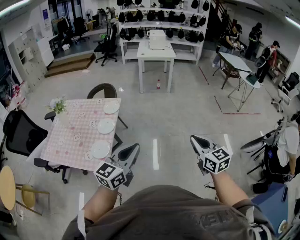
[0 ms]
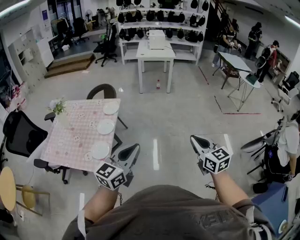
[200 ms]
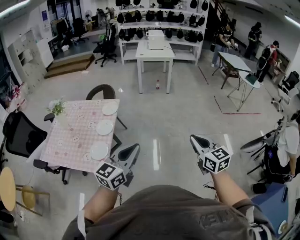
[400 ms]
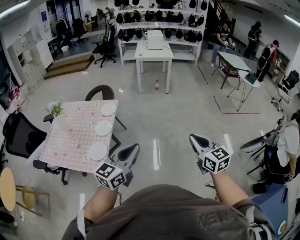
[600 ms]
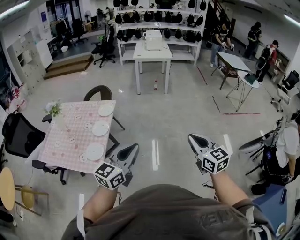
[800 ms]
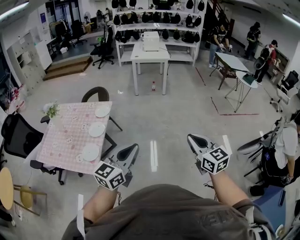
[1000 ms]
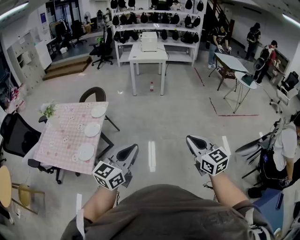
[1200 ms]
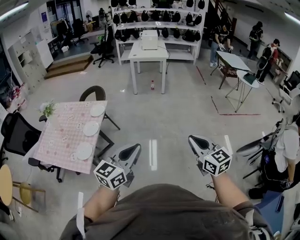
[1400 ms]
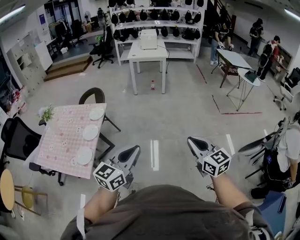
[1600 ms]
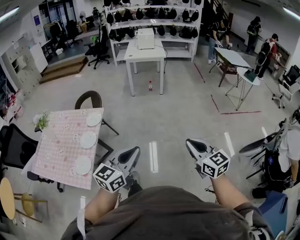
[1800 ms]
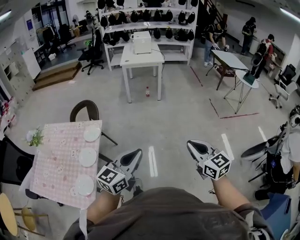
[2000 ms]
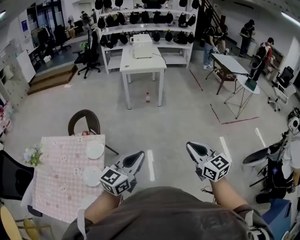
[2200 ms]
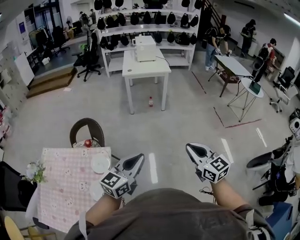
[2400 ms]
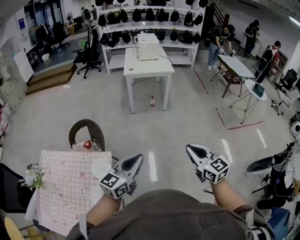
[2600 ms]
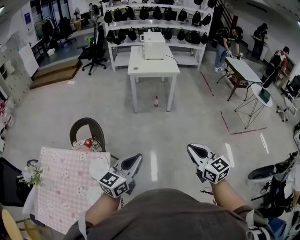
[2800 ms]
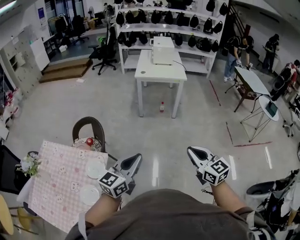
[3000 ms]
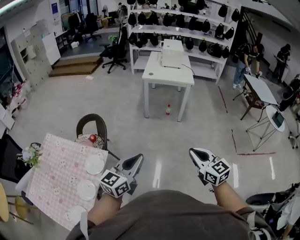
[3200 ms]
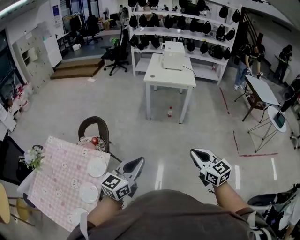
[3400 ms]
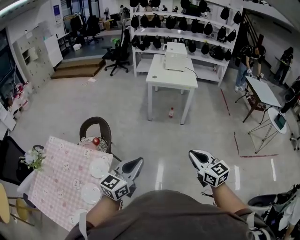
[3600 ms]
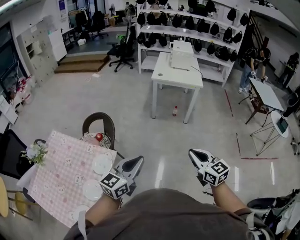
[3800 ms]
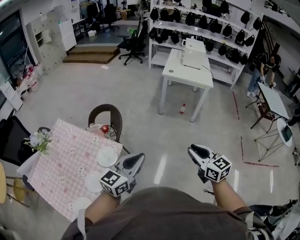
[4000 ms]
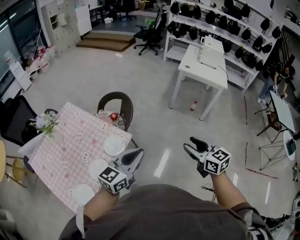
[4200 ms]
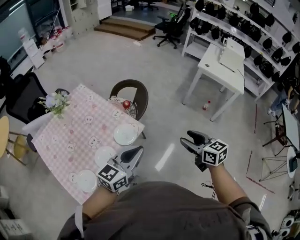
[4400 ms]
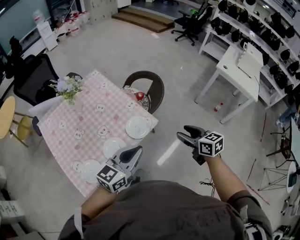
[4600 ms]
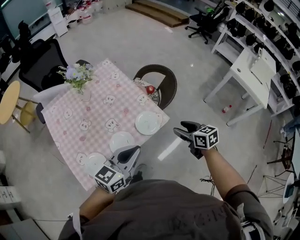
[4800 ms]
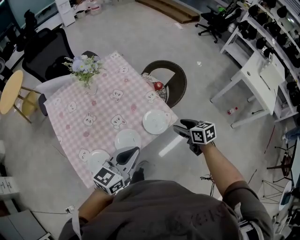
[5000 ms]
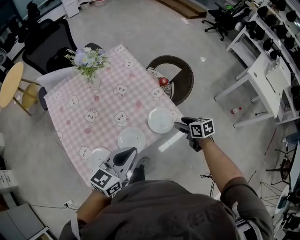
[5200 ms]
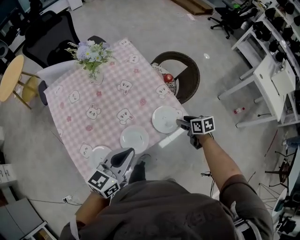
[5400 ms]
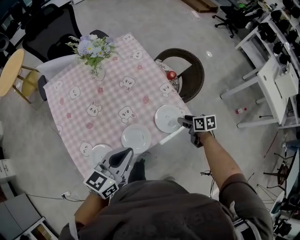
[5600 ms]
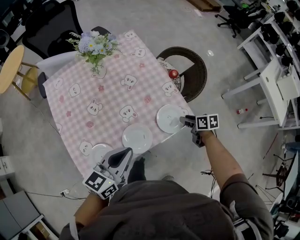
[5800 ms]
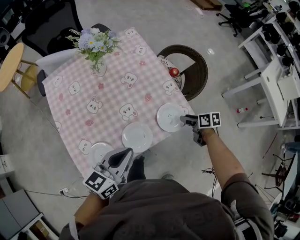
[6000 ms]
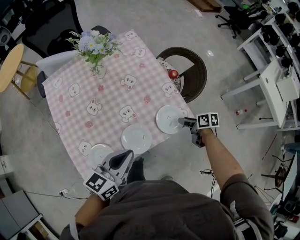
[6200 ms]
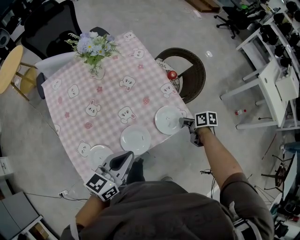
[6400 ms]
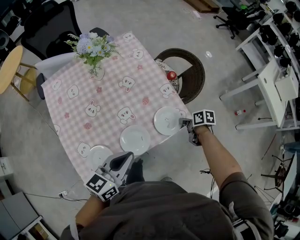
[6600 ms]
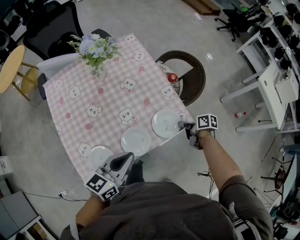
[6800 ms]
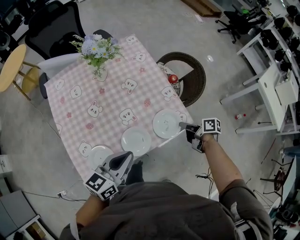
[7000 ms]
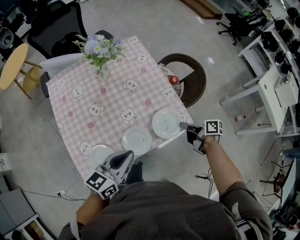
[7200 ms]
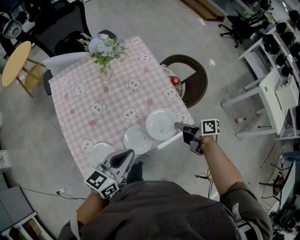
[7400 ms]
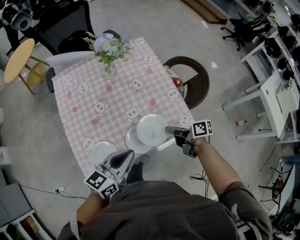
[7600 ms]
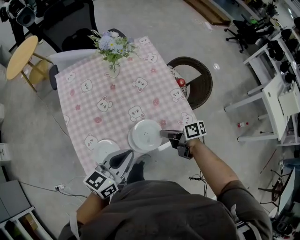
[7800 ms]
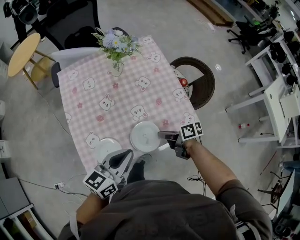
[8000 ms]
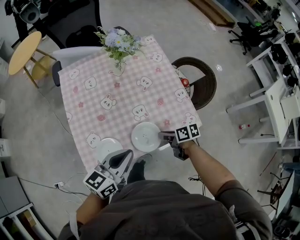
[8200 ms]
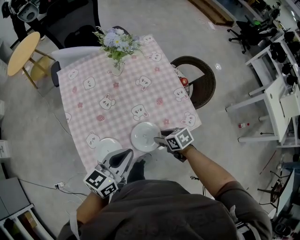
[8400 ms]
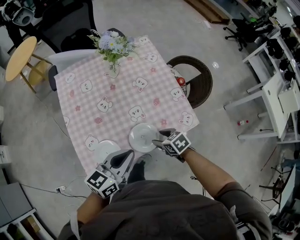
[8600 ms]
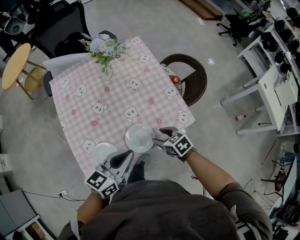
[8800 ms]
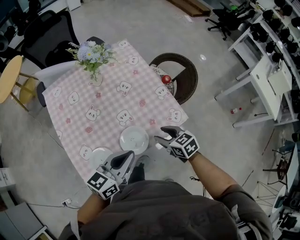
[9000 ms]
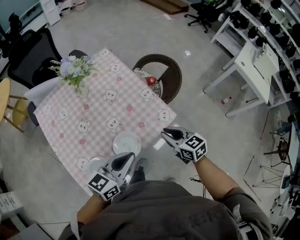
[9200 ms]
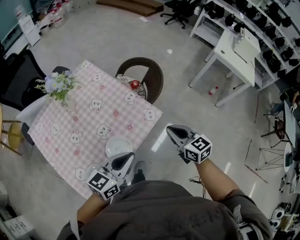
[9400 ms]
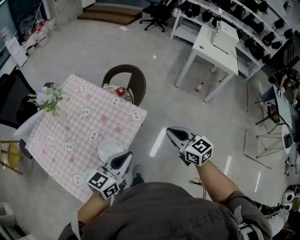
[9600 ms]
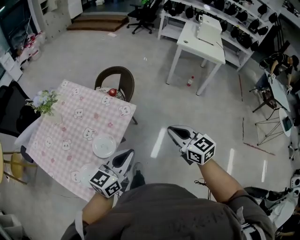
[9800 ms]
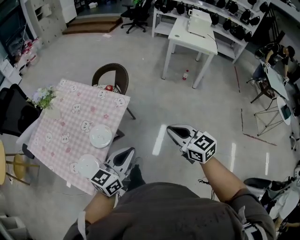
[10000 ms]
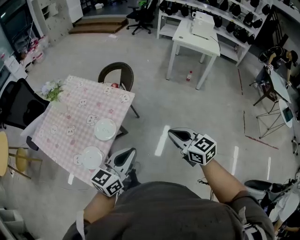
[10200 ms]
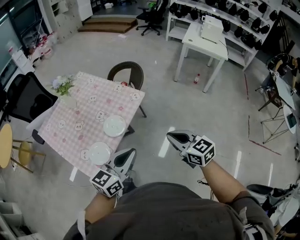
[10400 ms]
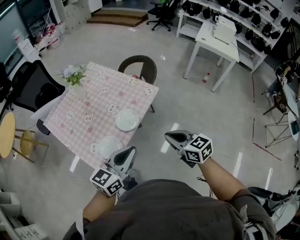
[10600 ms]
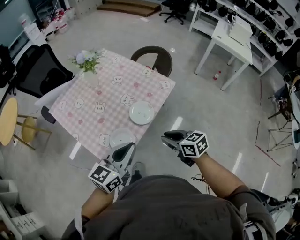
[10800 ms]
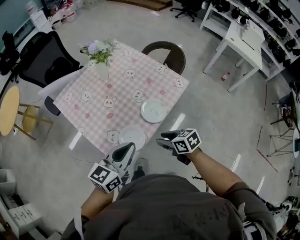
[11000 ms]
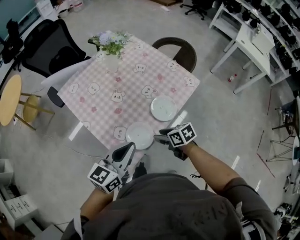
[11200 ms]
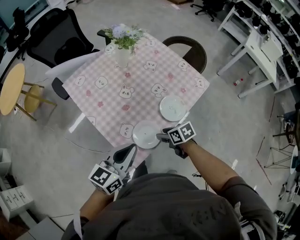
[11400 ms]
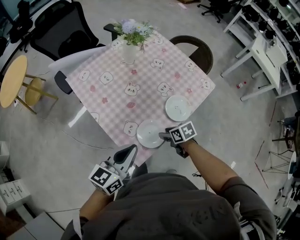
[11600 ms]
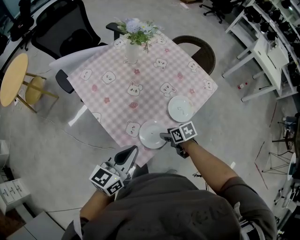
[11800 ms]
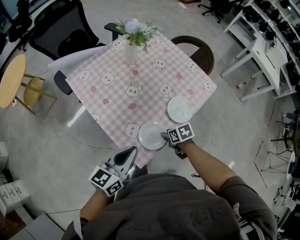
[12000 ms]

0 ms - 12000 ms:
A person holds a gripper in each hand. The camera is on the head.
0 ms - 1600 ms: Both grippers travel together to the right and forward, approximately 15 cm.
1600 ms - 3000 ms: The pair of grippers is taken forward, some 50 cm.
3000 ms - 4400 ms: The right gripper changes place by approximately 25 cm, changes its angle by roughly 40 degrees, and opens its fingers. The left gripper shifts by approximately 20 cm, and rotates approximately 30 degrees.
4400 ms - 6000 ms: The right gripper shifts roughly 30 cm downward, and rotates about 40 degrees. The left gripper ends up about 30 cm from where it was, and rotates some 30 degrees.
6000 ms - 7600 ms: The right gripper goes about 15 cm to the left and upward, swivels about 30 degrees, and closes.
7600 ms - 9000 ms: The right gripper moves backward, about 5 cm, reaches some 5 cm downward, then returns, rolls counterclockwise, seen from behind, by roughly 50 degrees, and opens its fingers.
9000 ms - 10400 ms: The left gripper ends up roughly 25 cm from where it was, and swivels some 30 degrees, while the right gripper changes place by roughly 40 cm, swivels about 40 degrees, and closes up.
10400 ms - 12000 ms: The left gripper shifts by about 35 cm, and turns by some 20 degrees; the right gripper shifts by some 50 cm, tips its fingers downward by about 40 degrees, and opens.

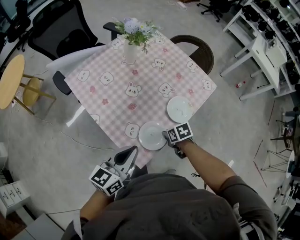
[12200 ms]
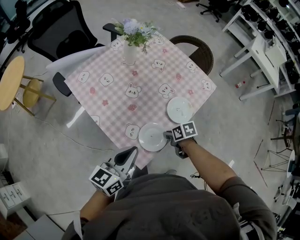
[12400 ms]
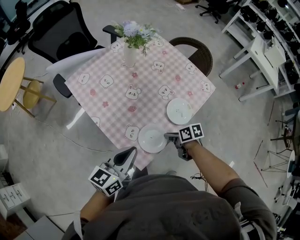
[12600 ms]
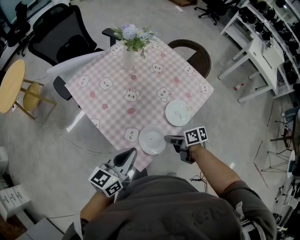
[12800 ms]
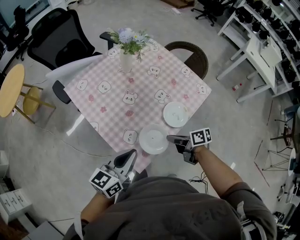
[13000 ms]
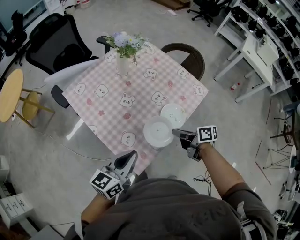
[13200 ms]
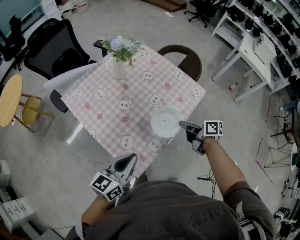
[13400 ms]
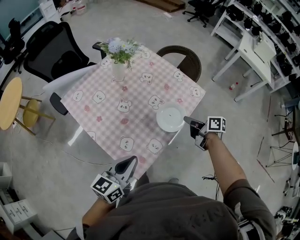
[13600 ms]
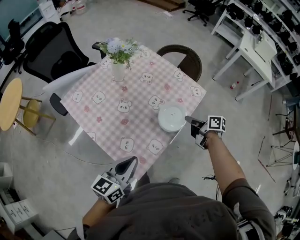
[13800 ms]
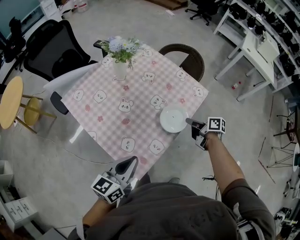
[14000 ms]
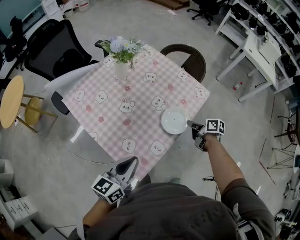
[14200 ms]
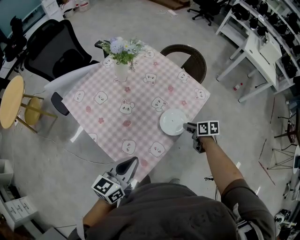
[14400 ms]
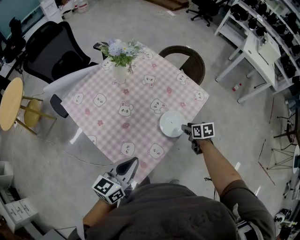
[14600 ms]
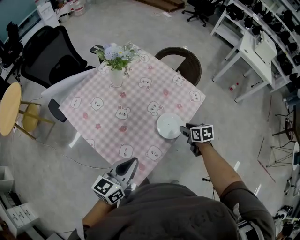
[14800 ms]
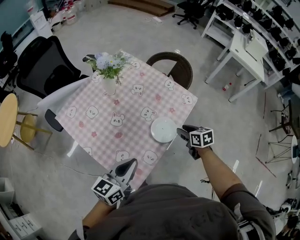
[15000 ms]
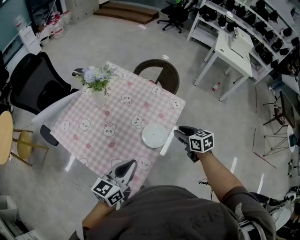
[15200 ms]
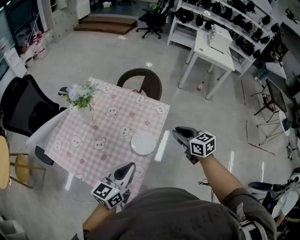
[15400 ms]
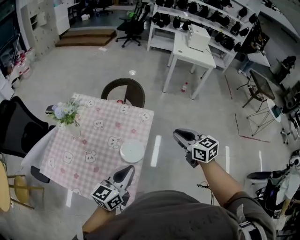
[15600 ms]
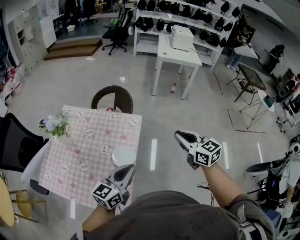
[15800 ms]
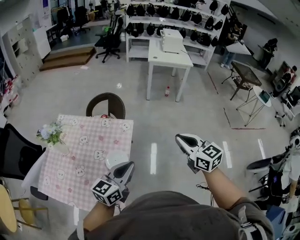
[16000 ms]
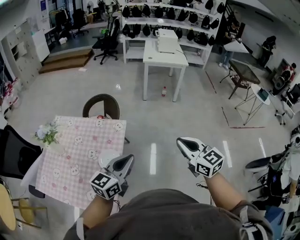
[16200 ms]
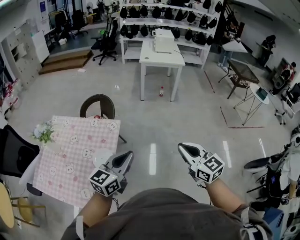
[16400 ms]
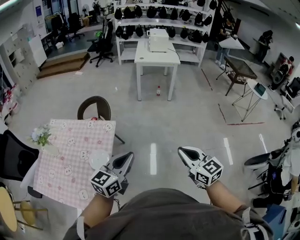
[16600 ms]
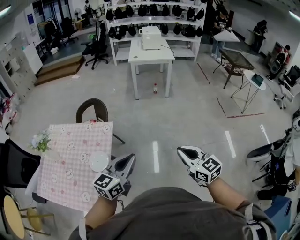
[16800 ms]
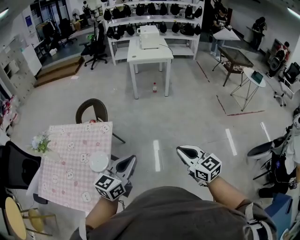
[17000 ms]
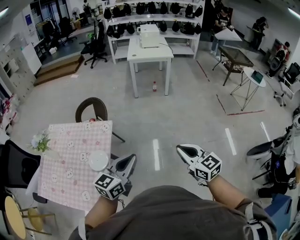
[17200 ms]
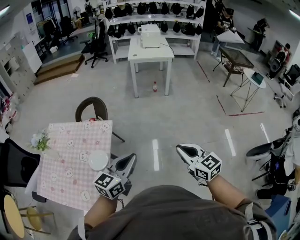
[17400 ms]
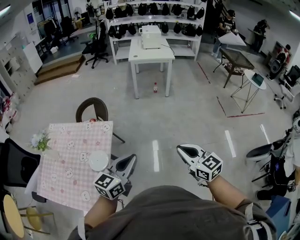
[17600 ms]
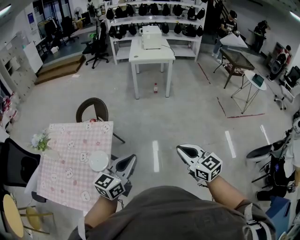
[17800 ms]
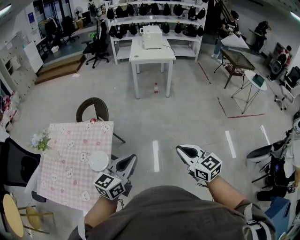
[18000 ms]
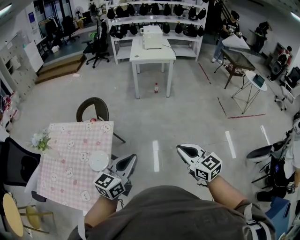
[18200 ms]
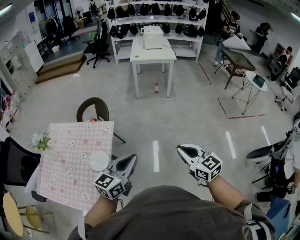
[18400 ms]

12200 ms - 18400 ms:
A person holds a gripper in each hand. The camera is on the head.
12200 ms - 13800 ms: The right gripper heads to the right, upward and forward, covering some 20 cm, and tilts its fingers approximately 40 degrees upward.
13800 ms - 15400 ms: The right gripper shifts approximately 15 cm upward and to the right, changes its angle by approximately 50 degrees, and opens its fingers. Meanwhile the left gripper heads to the right, forward and upward, covering some 15 cm.
15400 ms - 16800 ms: The right gripper goes approximately 40 cm to the right and backward, turns by about 30 degrees, and closes up. The left gripper travels to the right by some 35 cm, and swivels roughly 20 degrees.
16800 ms - 18400 ms: The grippers move only a little.

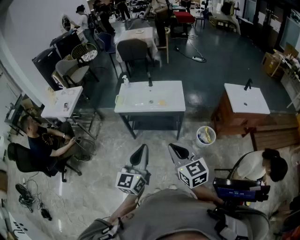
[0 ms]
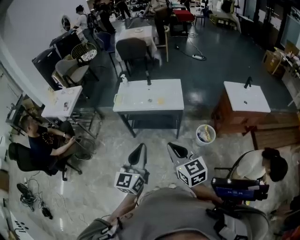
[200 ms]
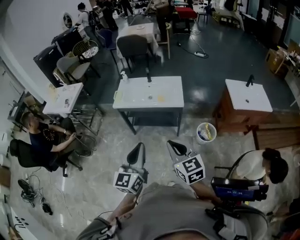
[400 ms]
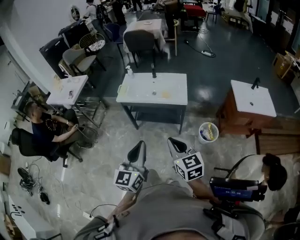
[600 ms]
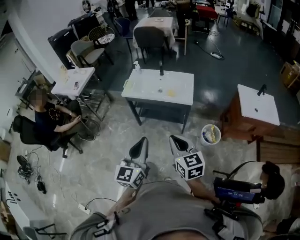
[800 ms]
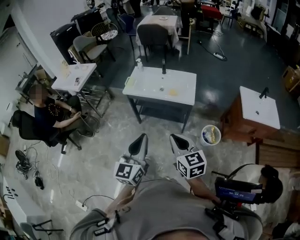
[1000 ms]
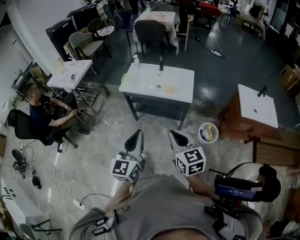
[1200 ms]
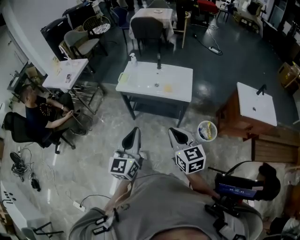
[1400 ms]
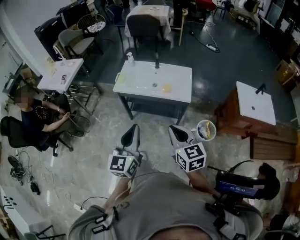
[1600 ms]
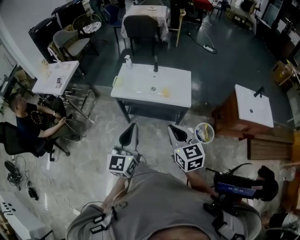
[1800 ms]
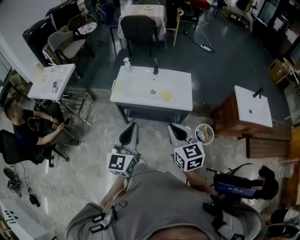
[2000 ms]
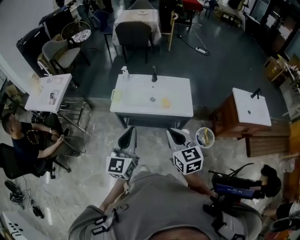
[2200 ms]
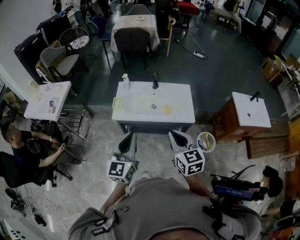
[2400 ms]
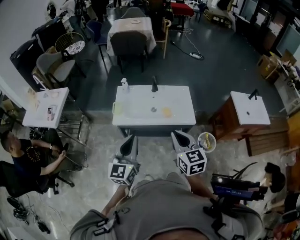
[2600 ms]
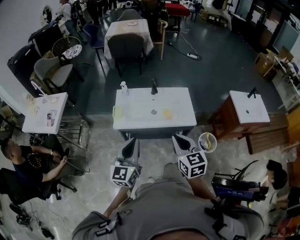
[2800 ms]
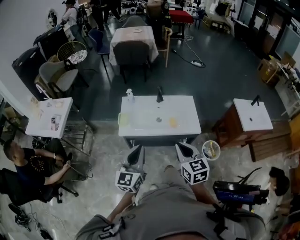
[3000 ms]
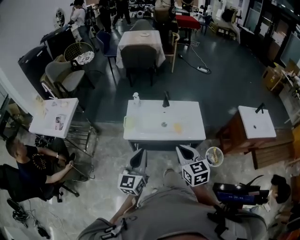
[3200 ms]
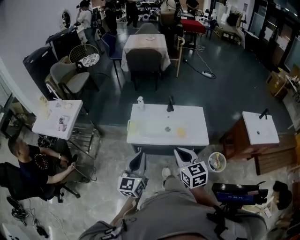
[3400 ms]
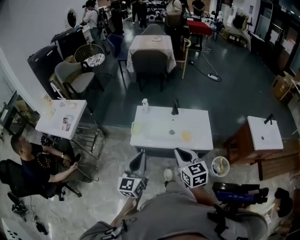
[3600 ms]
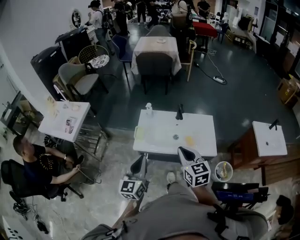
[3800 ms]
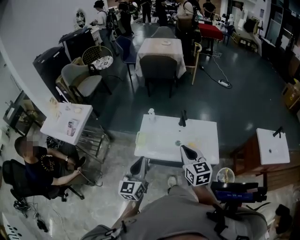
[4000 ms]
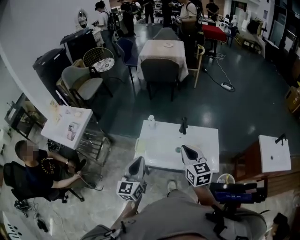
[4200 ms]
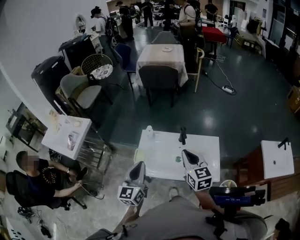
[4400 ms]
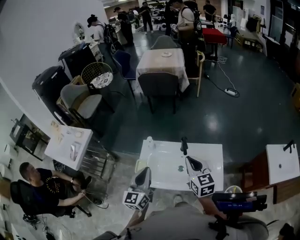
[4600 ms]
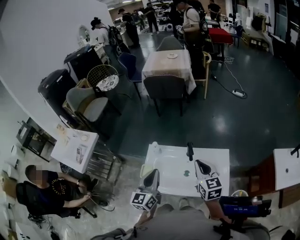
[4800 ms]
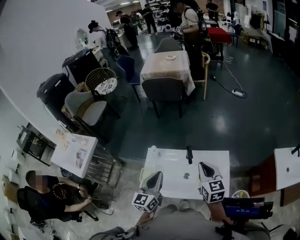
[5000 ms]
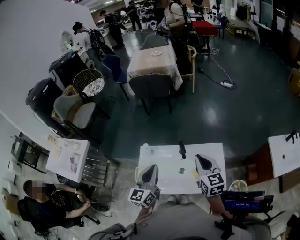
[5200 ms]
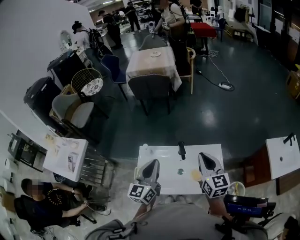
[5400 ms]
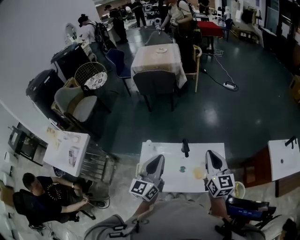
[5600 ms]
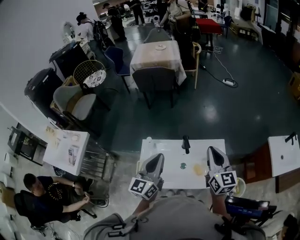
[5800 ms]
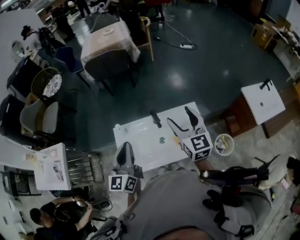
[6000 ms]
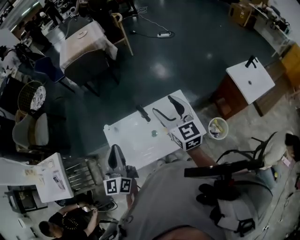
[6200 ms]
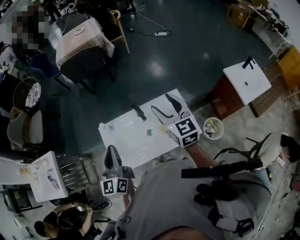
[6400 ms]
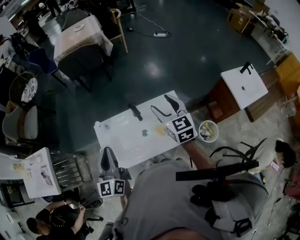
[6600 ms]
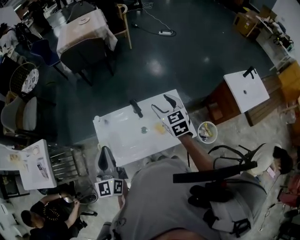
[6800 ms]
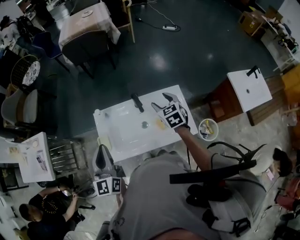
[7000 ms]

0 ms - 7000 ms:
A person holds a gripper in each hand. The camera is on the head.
0 ms - 1400 ms: The right gripper heads forward and downward, covering about 10 cm. Meanwhile the left gripper travels forward by roughly 5 cm.
1400 ms - 2800 ms: Both grippers travel together forward and to the left, approximately 30 cm.
2800 ms - 4200 ms: The two grippers go some 20 cm forward.
4200 ms - 5600 ms: The grippers both shift forward and to the right by approximately 20 cm.
5600 ms - 7000 ms: The left gripper is displaced downward, to the left and backward by some 10 cm, while the right gripper shifts about 20 cm downward, tilts its fingers approximately 30 degrees downward, and opens.
